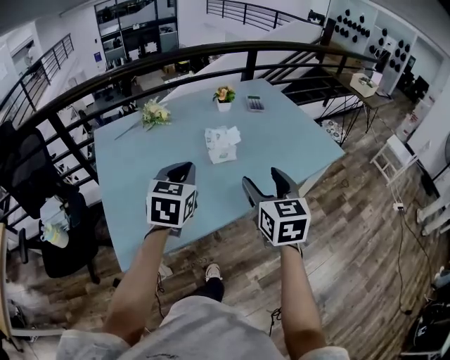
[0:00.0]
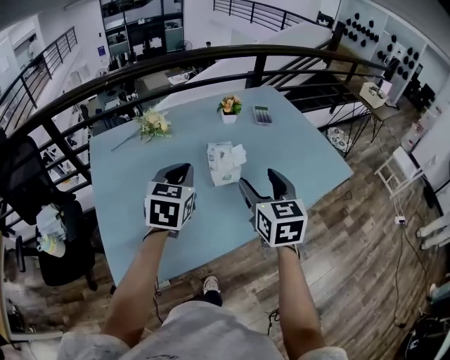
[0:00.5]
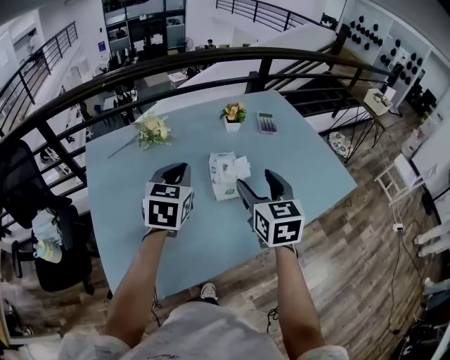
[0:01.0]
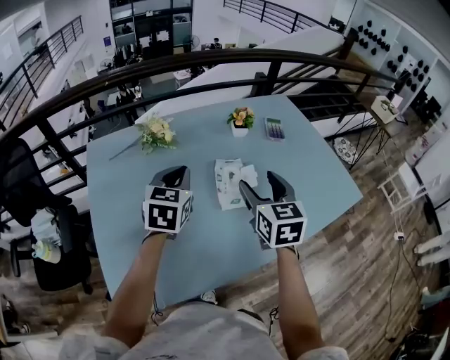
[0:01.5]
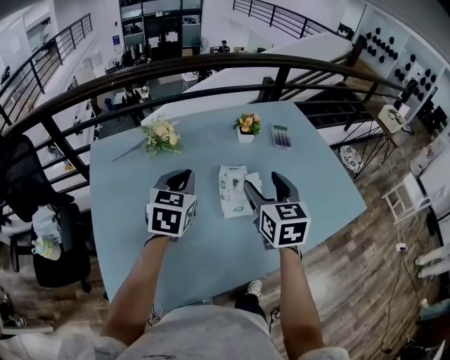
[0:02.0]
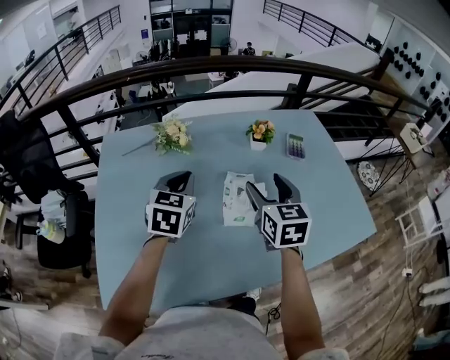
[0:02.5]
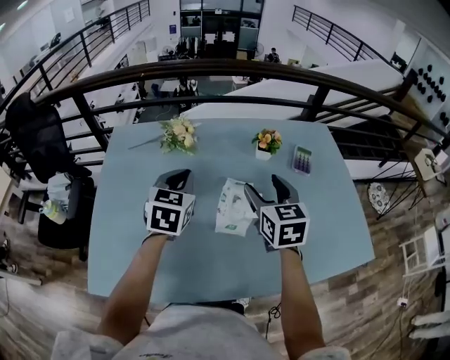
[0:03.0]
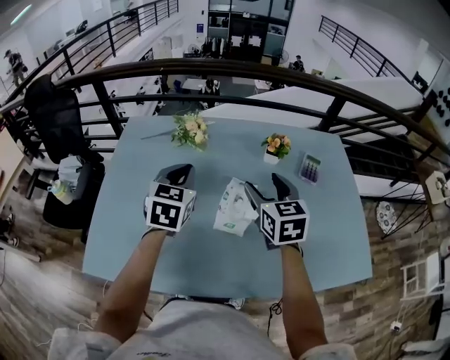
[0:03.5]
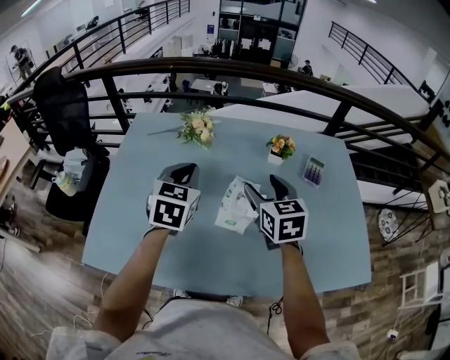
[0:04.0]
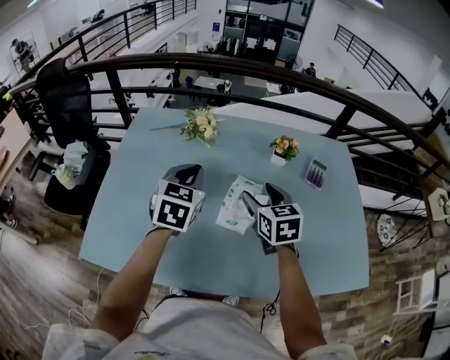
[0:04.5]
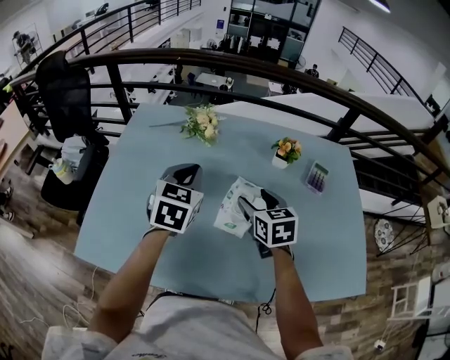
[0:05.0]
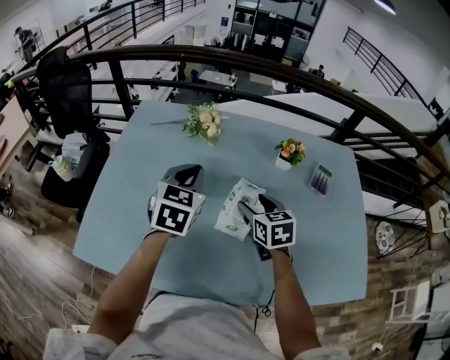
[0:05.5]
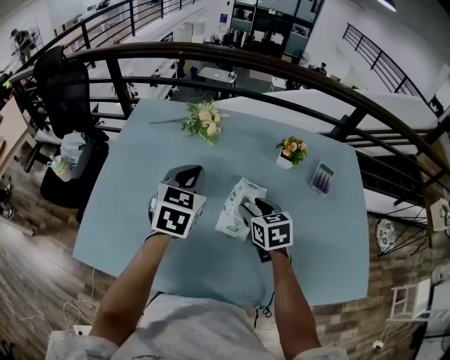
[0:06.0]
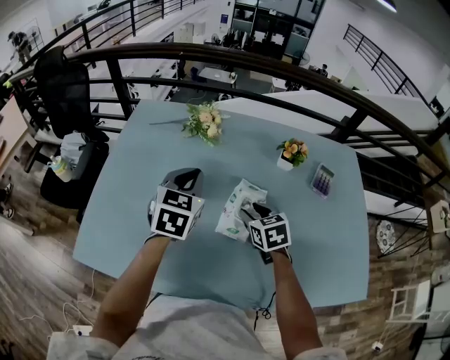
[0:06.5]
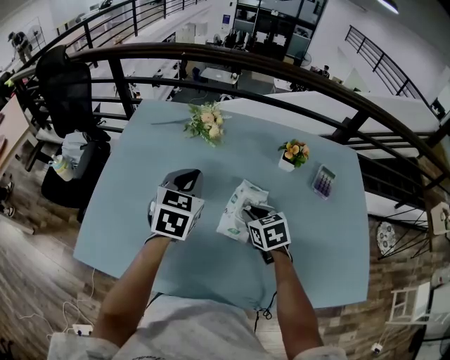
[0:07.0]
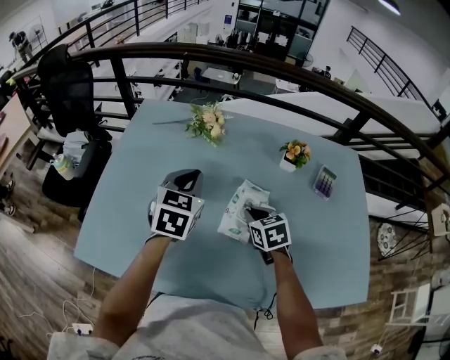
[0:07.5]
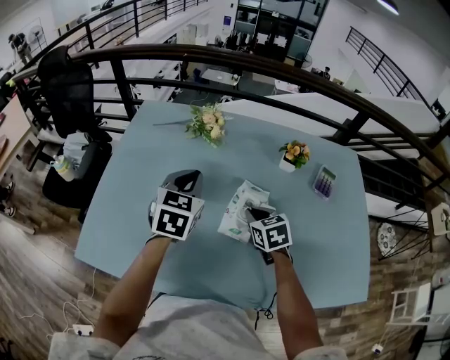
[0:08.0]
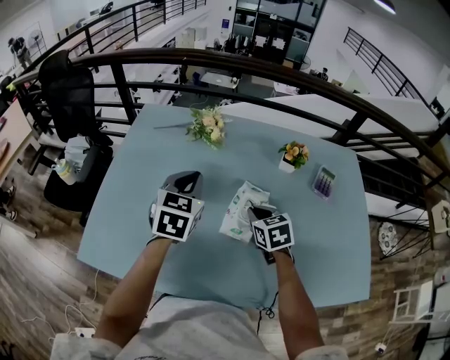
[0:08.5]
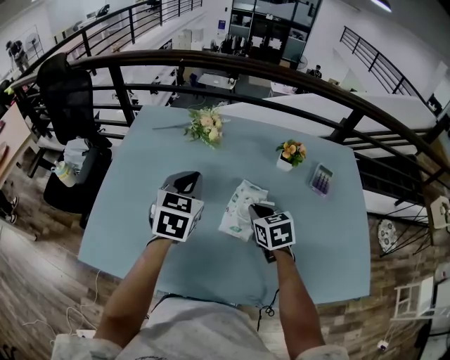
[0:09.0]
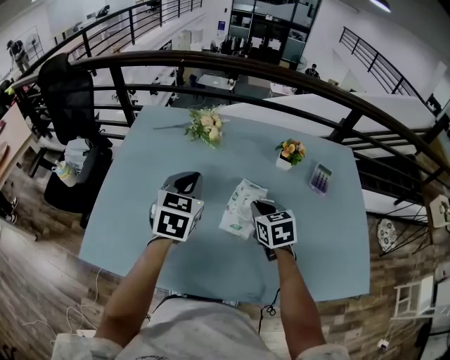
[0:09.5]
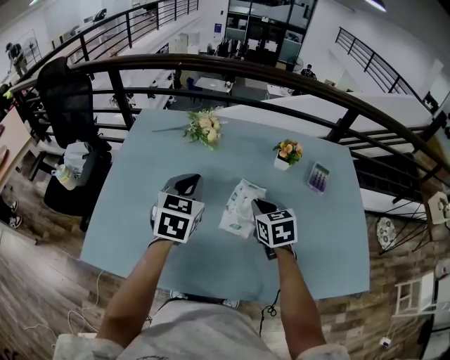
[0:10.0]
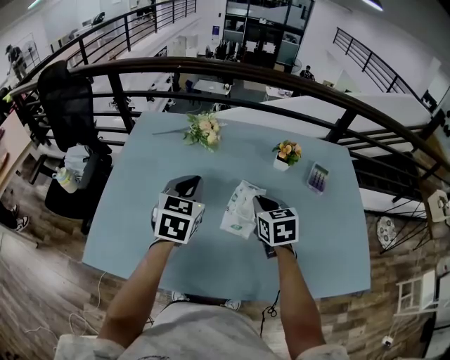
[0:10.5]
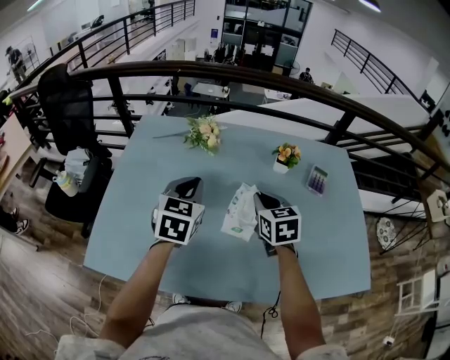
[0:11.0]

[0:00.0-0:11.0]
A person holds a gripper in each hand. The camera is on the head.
0:00.0 to 0:02.0: The two grippers go approximately 25 cm forward.
0:02.0 to 0:03.5: The right gripper is displaced forward by approximately 5 cm, and swivels some 20 degrees, while the left gripper changes its angle by some 20 degrees.
0:03.5 to 0:05.5: The right gripper moves downward, roughly 10 cm.
0:05.5 to 0:07.5: The right gripper goes roughly 5 cm downward, and closes.
0:07.5 to 0:09.0: There are only small adjustments of the grippers.
0:09.0 to 0:11.0: The right gripper travels upward by about 10 cm.

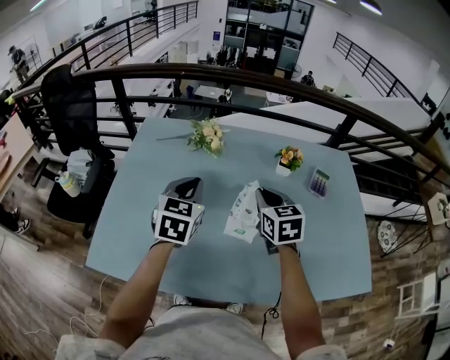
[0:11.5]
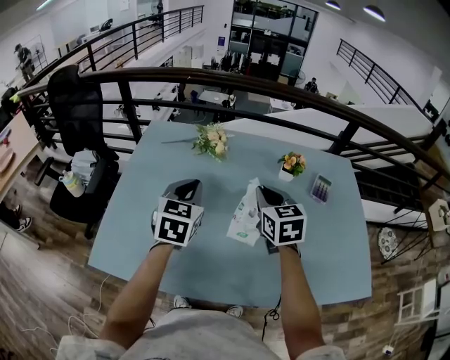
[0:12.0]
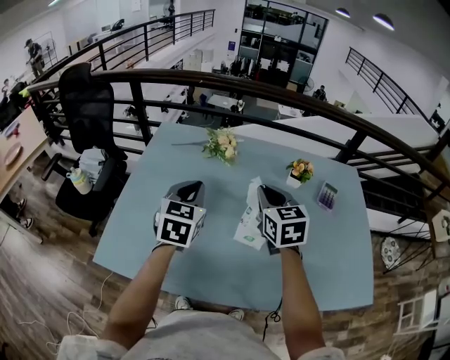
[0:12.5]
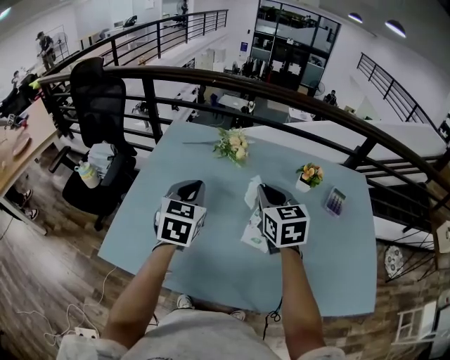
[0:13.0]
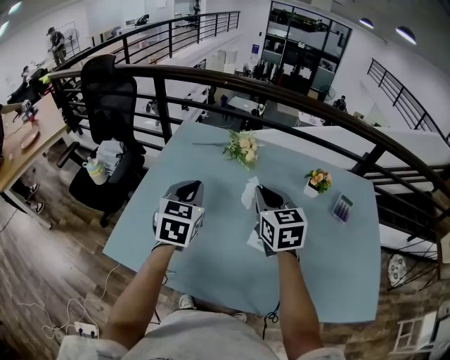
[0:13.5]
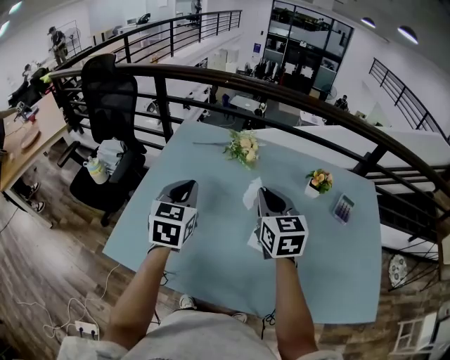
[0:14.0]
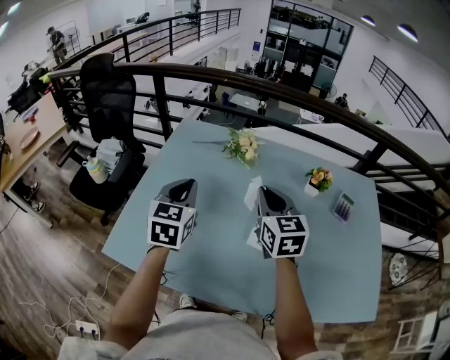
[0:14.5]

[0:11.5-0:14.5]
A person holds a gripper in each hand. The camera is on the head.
0:11.5 to 0:13.0: The right gripper moves to the left and upward, some 10 cm, while the left gripper heads to the left, covering roughly 5 cm.
0:13.0 to 0:14.5: The grippers move only a little.

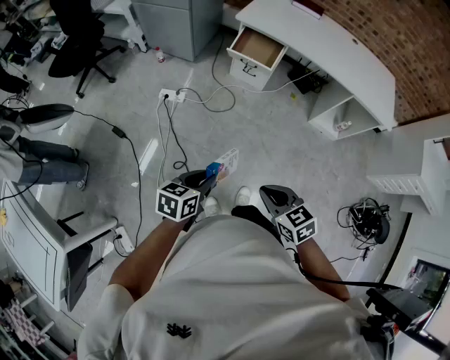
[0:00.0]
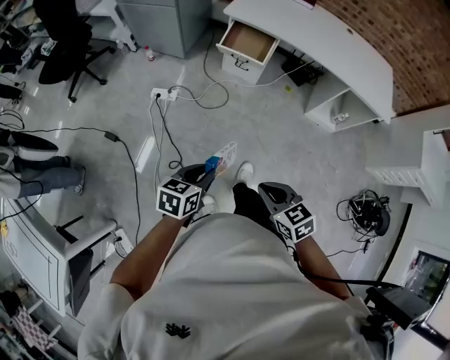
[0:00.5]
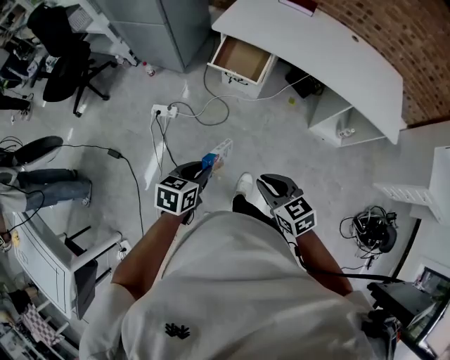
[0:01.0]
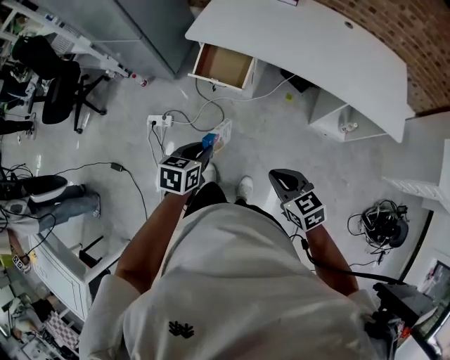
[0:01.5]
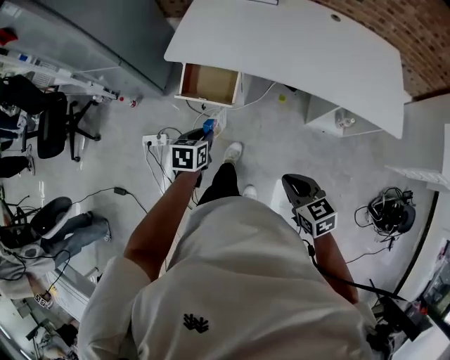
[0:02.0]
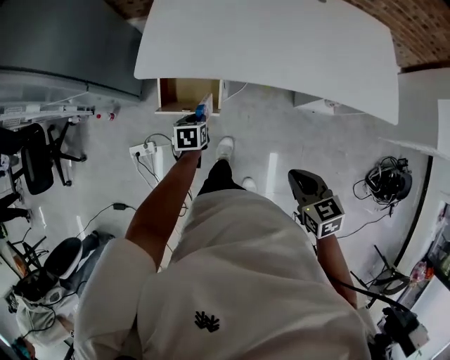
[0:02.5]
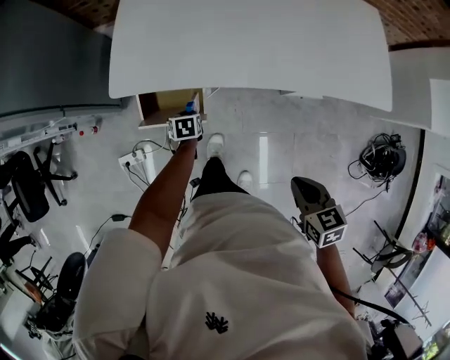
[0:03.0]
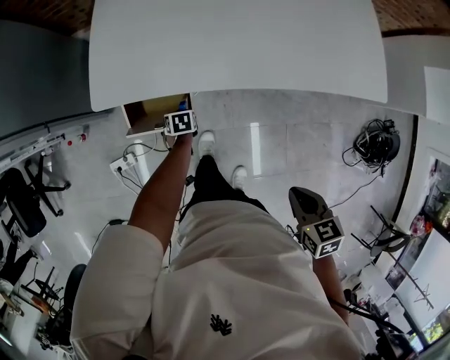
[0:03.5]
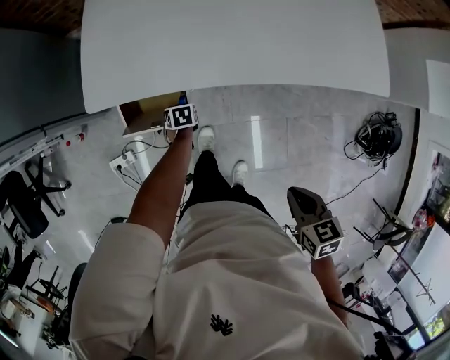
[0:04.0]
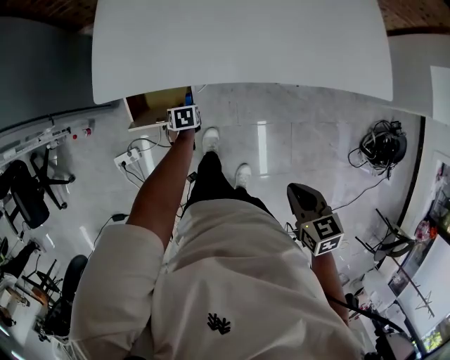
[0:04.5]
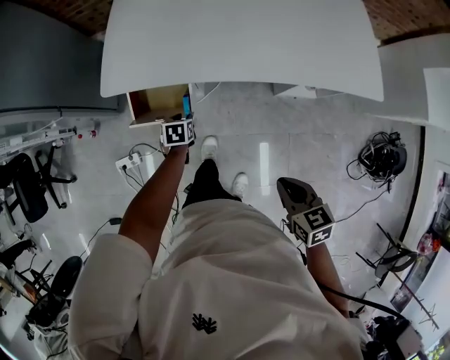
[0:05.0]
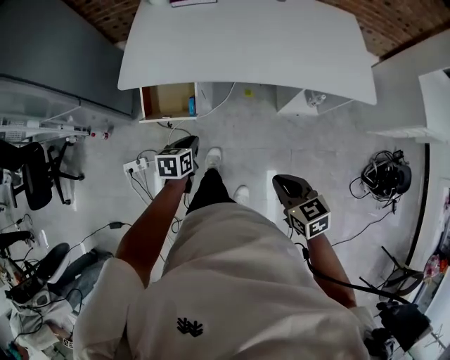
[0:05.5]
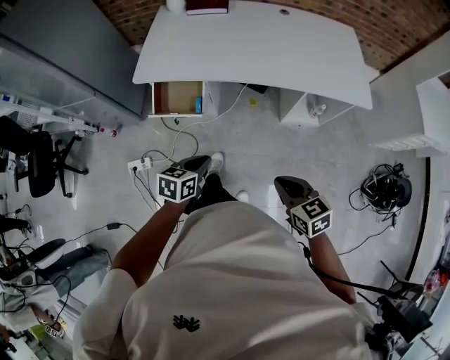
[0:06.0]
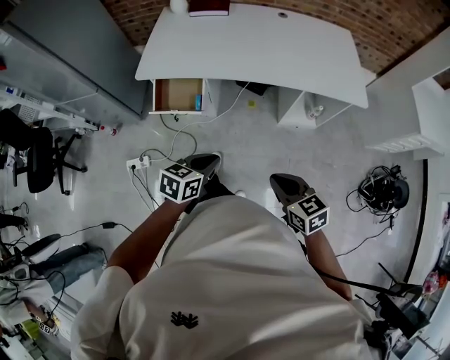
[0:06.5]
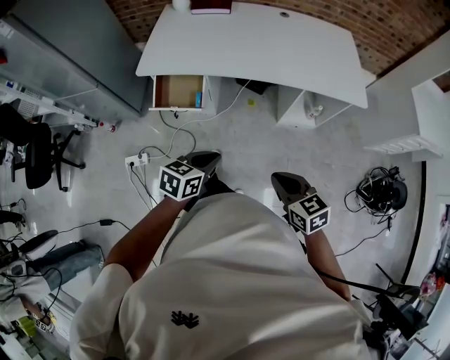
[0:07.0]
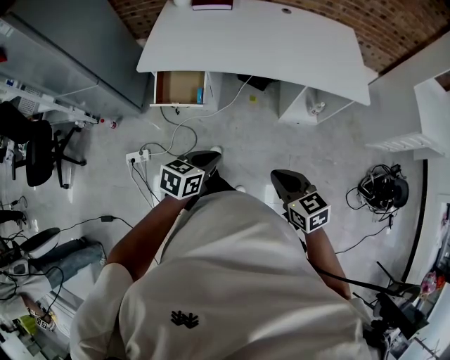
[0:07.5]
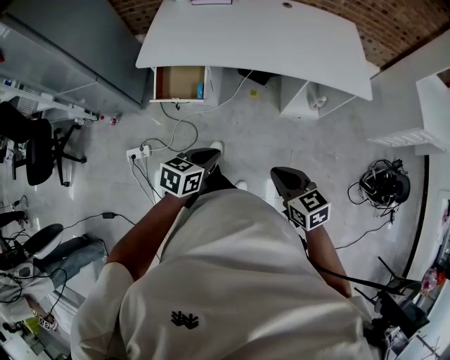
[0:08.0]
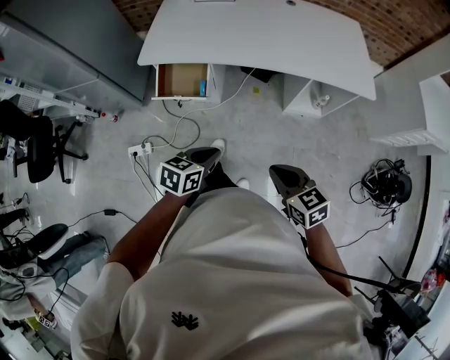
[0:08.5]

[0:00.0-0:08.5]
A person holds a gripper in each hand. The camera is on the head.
0:00.0 to 0:02.0: Both grippers are carried forward and to the right, some 60 cm.
0:02.0 to 0:04.0: The right gripper shifts about 15 cm forward, and turns by about 40 degrees. Meanwhile the left gripper moves forward and downward, roughly 40 cm, and changes its angle by approximately 20 degrees.
0:04.0 to 0:06.5: The right gripper heads backward, covering some 25 cm, and turns by about 30 degrees, while the left gripper moves backward and upward, some 60 cm, and tilts its fingers some 40 degrees upward.
0:06.5 to 0:08.5: The grippers move only a little.

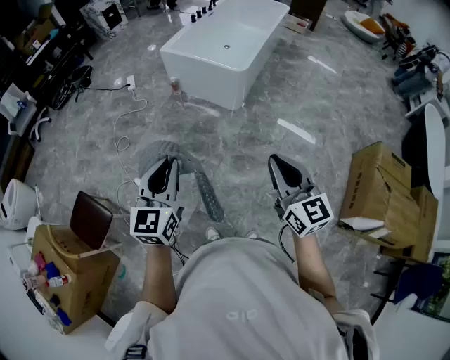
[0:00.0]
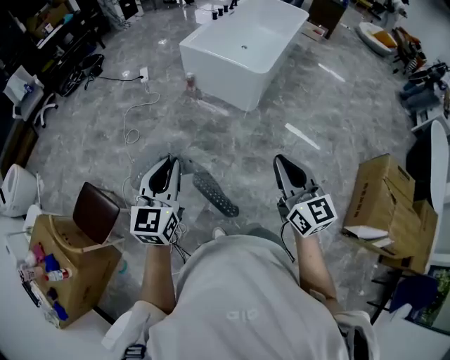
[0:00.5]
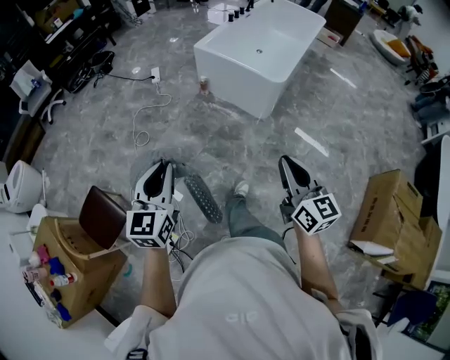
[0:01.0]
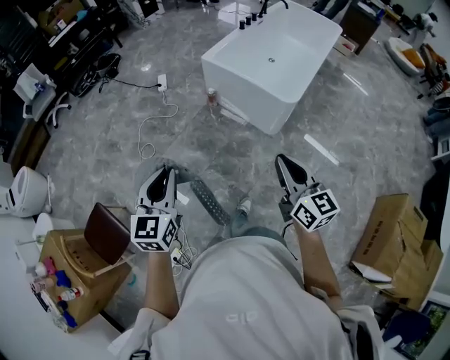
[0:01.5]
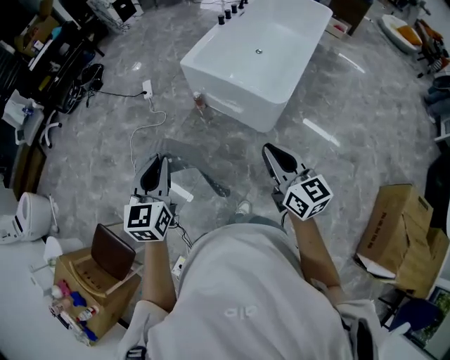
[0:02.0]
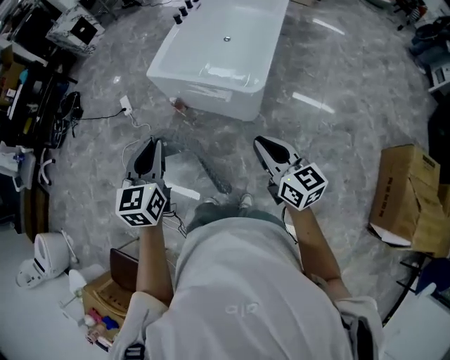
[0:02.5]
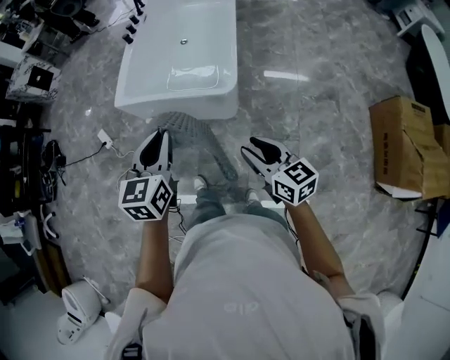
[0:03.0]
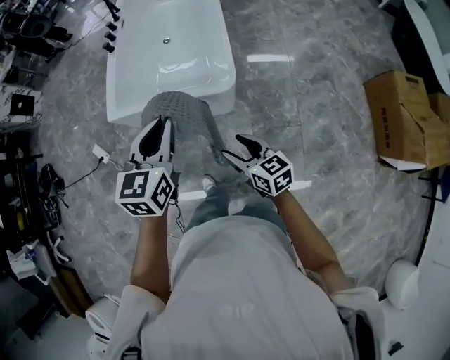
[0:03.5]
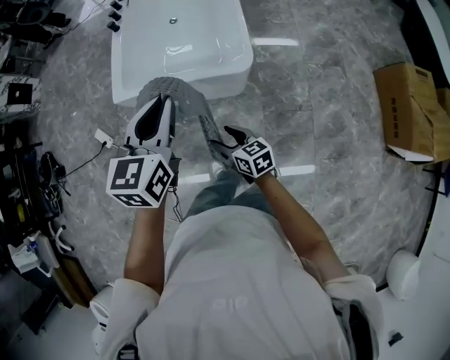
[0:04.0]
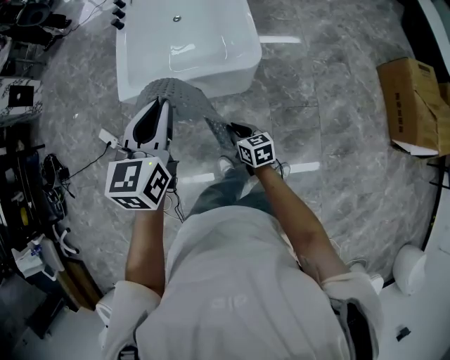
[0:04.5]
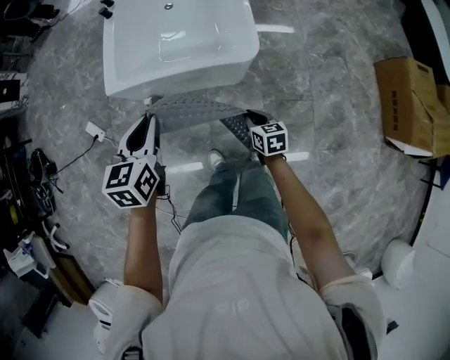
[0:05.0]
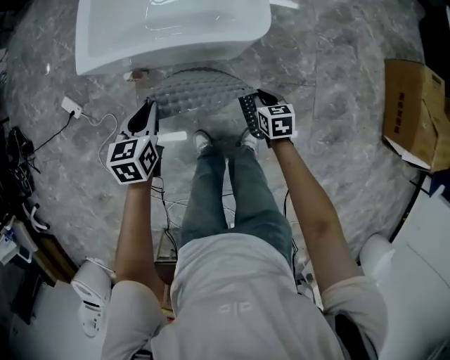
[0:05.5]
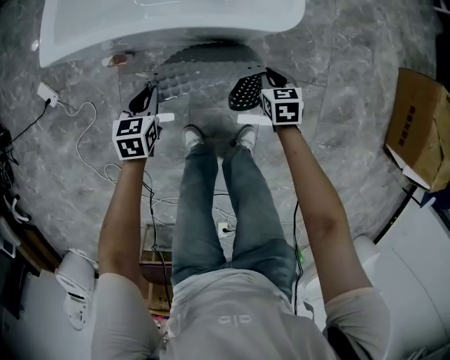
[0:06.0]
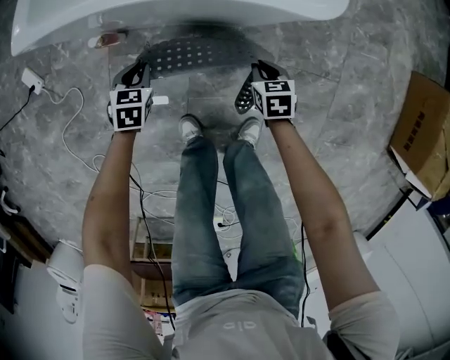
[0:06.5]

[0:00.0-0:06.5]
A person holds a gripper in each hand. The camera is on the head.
0:00.0 to 0:02.0: The pair of grippers is taken forward, about 50 cm.
0:02.0 to 0:04.5: The left gripper shifts by roughly 40 cm, and changes its angle by some 40 degrees, while the right gripper moves downward, some 35 cm, swivels about 40 degrees, and opens, then closes again.
0:04.5 to 0:06.5: The left gripper travels downward by roughly 70 cm, and points its fingers some 40 degrees further downward. Meanwhile the right gripper shifts roughly 40 cm downward, and swivels some 30 degrees.
